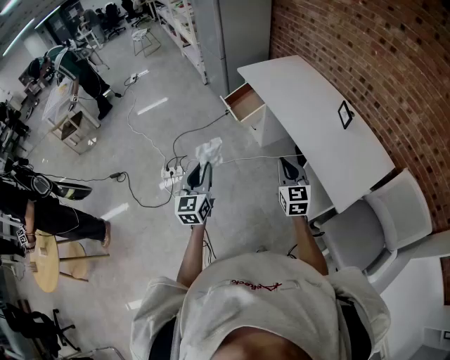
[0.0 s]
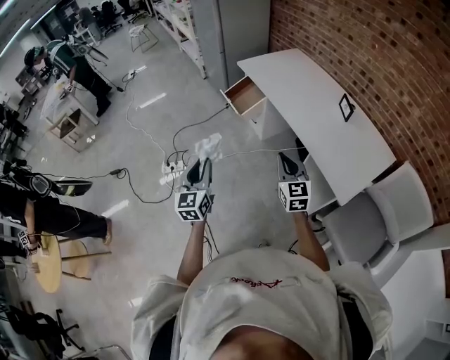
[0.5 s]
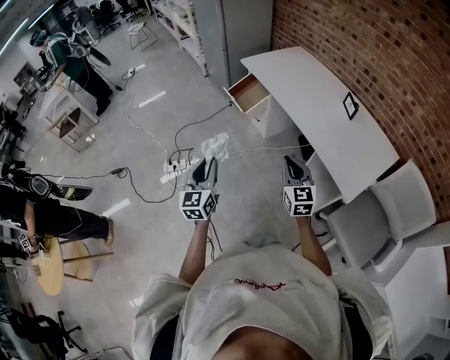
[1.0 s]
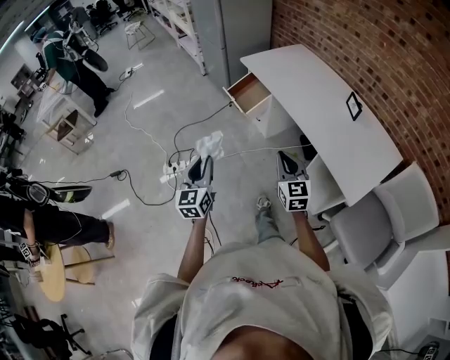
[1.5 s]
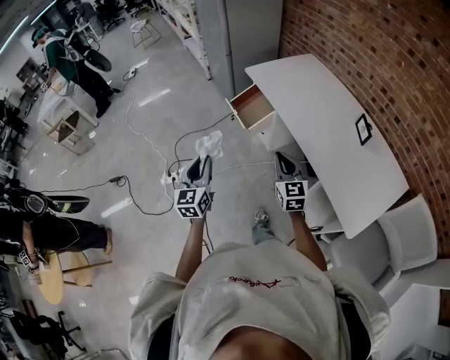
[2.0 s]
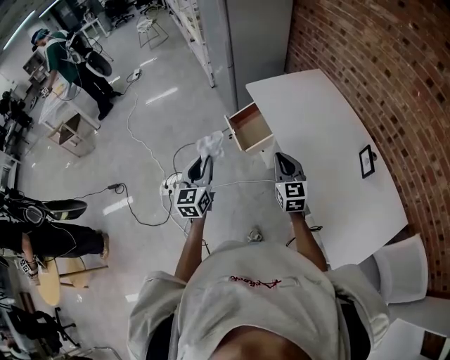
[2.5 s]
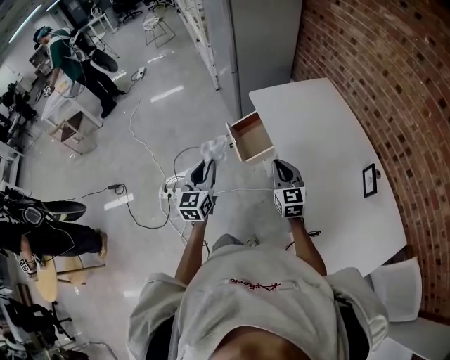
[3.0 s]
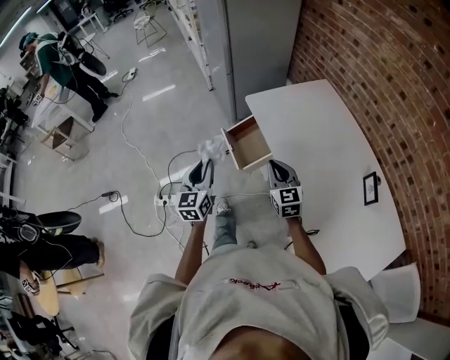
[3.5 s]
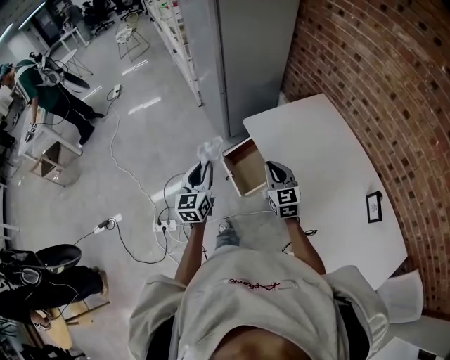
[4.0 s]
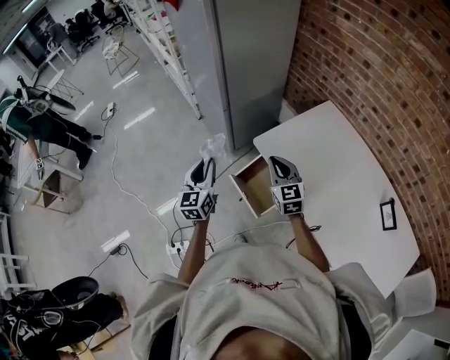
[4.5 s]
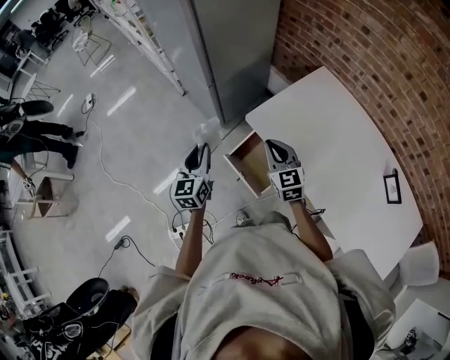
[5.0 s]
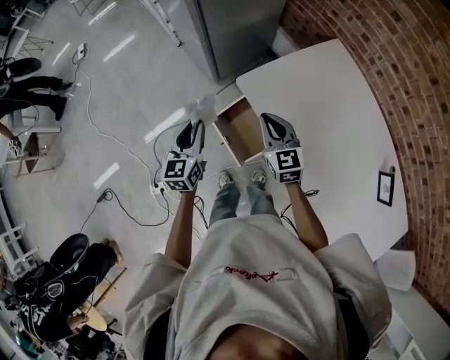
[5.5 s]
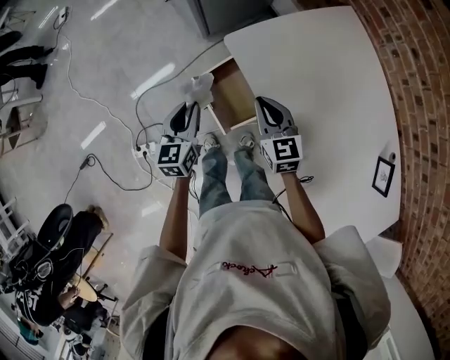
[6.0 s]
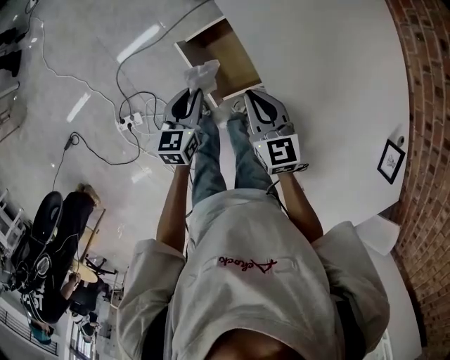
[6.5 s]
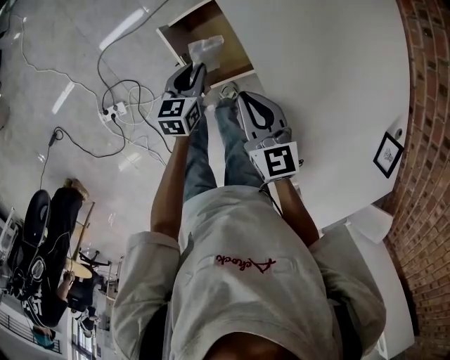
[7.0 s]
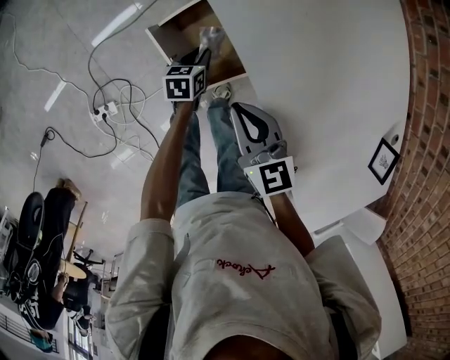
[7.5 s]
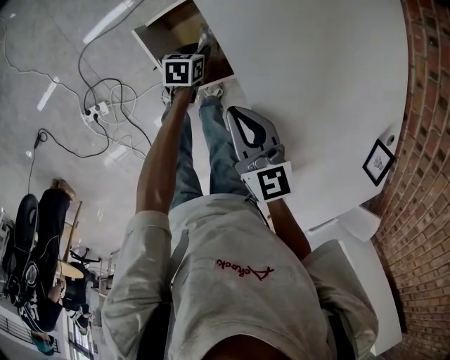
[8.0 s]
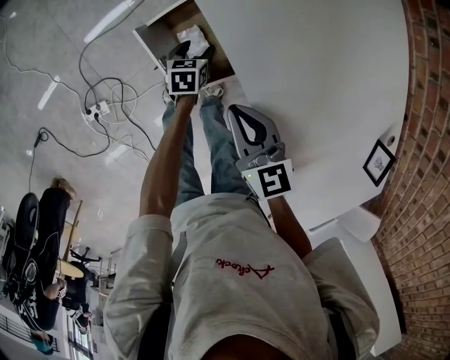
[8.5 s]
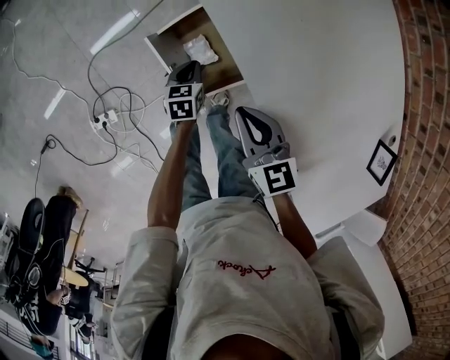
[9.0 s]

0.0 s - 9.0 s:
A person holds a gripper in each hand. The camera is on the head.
0.0 s - 2.0 s: The grippers both shift forward by approximately 20 cm.
2.0 s - 4.5 s: The two grippers travel together, forward, approximately 60 cm.
4.5 s - 7.0 s: The left gripper is displaced downward and to the right by approximately 40 cm, and tilts its fingers approximately 30 degrees downward. The right gripper heads downward, covering about 20 cm, and rotates about 30 degrees.
7.0 s - 9.0 s: The left gripper goes roughly 10 cm downward, and opens, then closes once more.

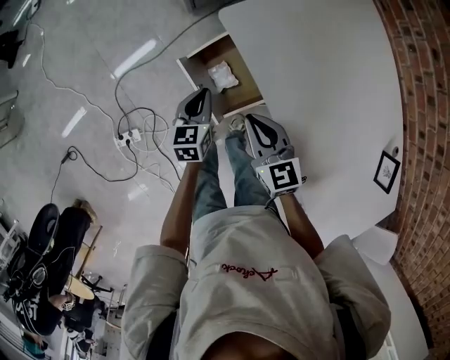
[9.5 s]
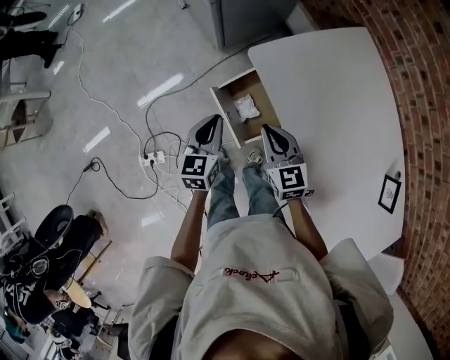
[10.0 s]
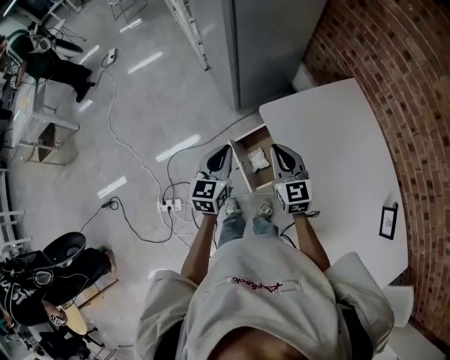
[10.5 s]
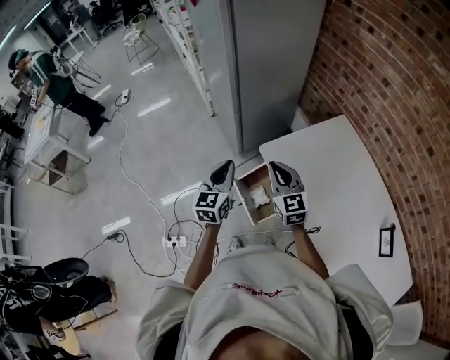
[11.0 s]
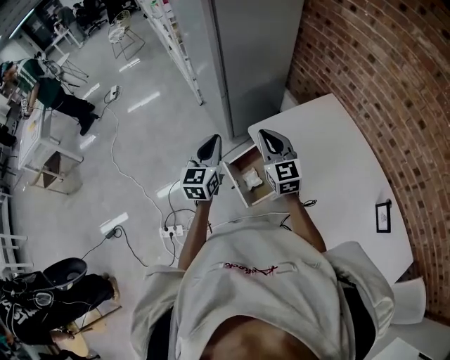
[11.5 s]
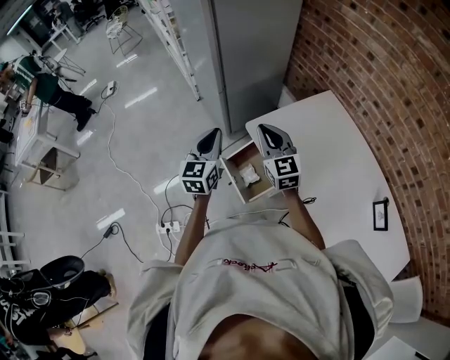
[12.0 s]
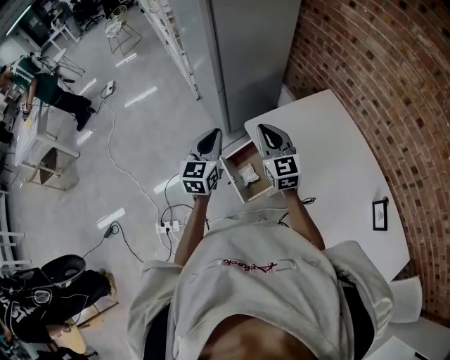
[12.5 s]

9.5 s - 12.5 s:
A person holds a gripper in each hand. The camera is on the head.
9.5 s - 11.0 s: The two grippers go approximately 25 cm upward. The right gripper changes its angle by about 20 degrees; the left gripper changes its angle by some 30 degrees.
11.0 s - 12.5 s: The grippers make only small movements.

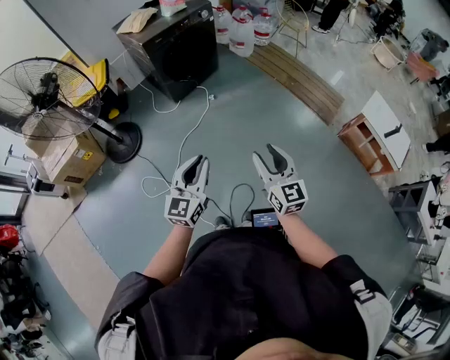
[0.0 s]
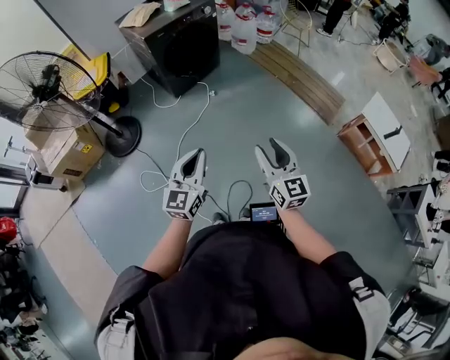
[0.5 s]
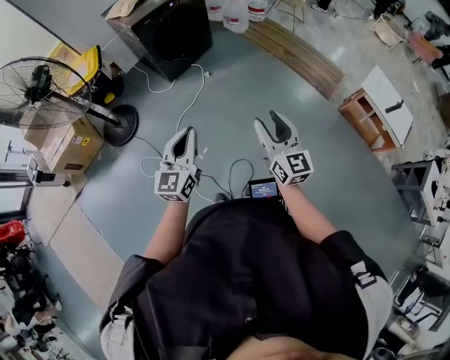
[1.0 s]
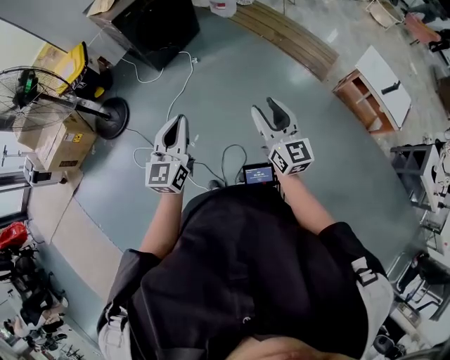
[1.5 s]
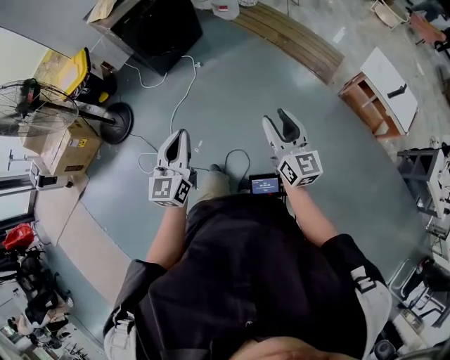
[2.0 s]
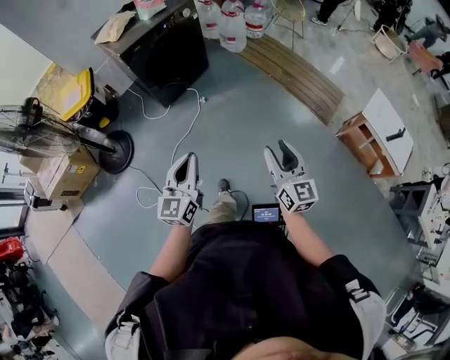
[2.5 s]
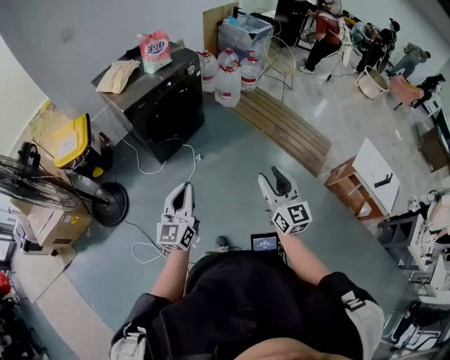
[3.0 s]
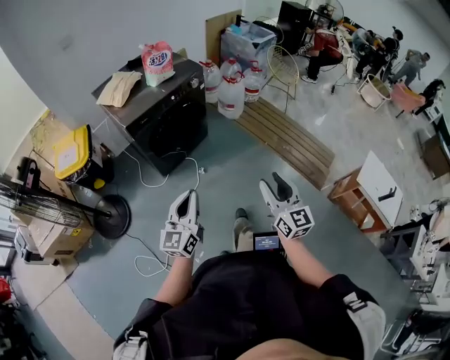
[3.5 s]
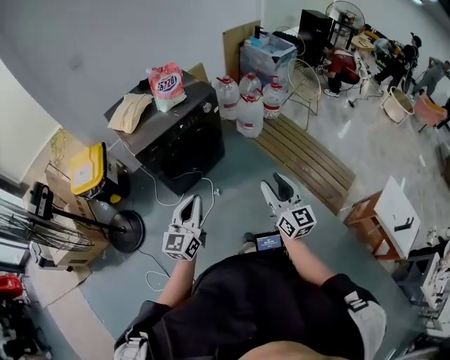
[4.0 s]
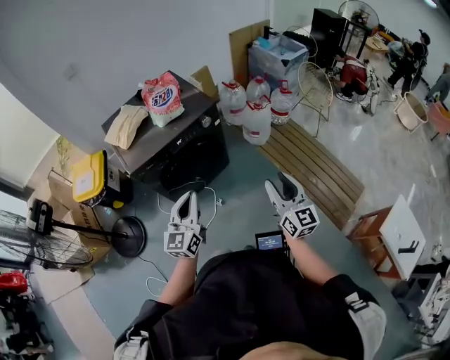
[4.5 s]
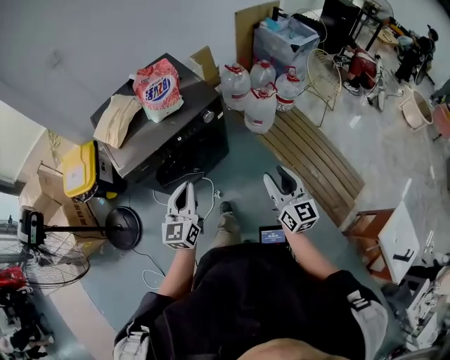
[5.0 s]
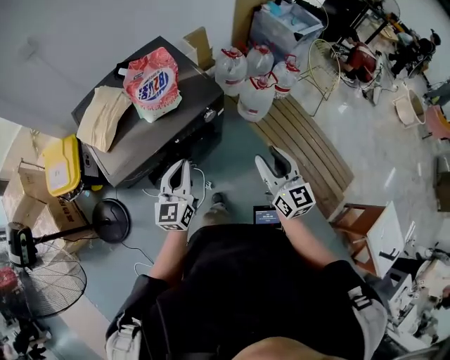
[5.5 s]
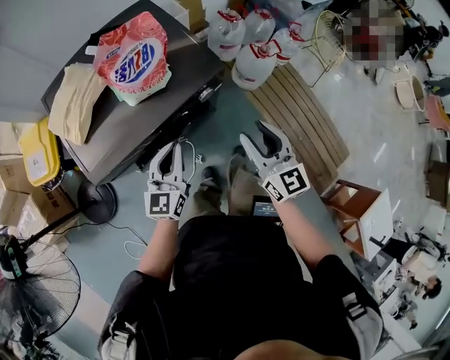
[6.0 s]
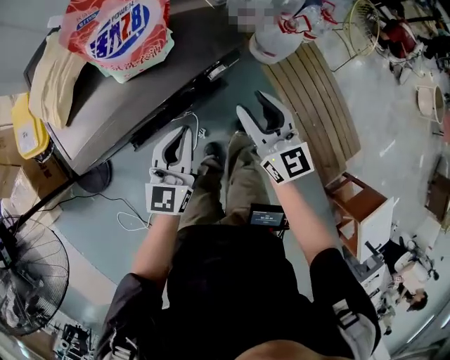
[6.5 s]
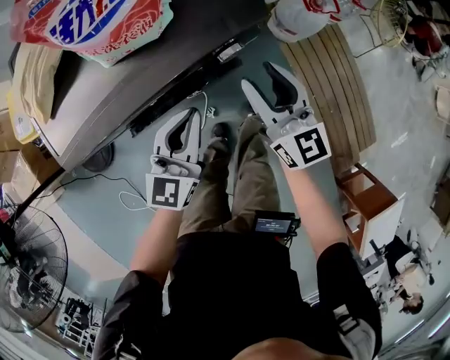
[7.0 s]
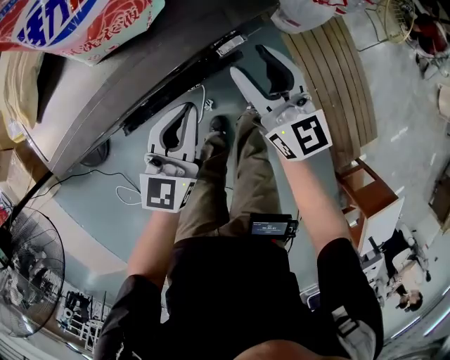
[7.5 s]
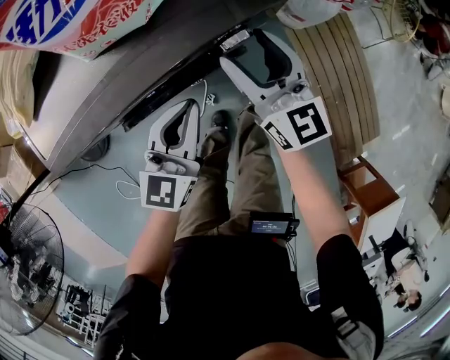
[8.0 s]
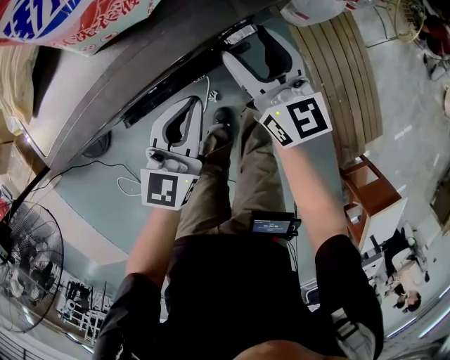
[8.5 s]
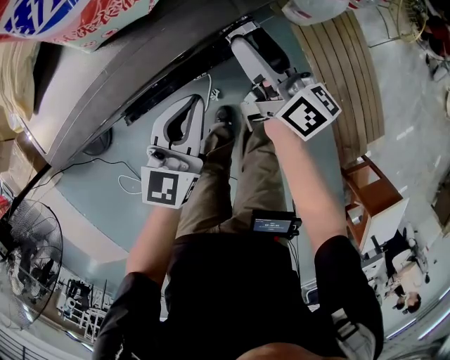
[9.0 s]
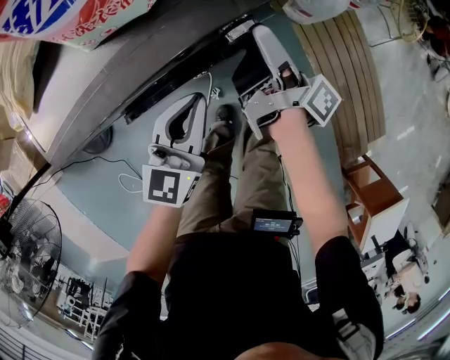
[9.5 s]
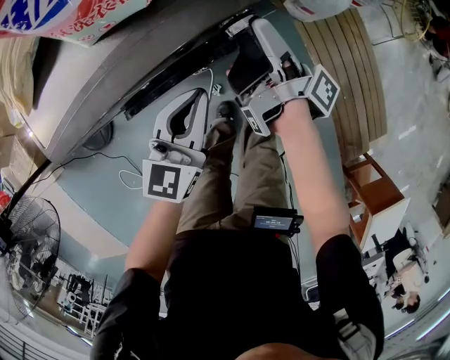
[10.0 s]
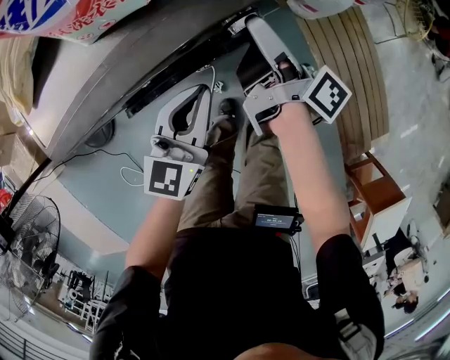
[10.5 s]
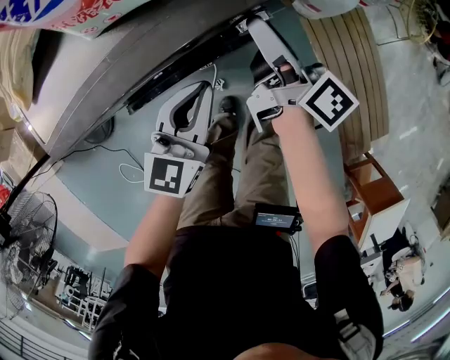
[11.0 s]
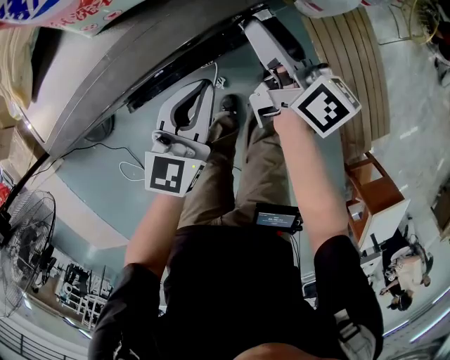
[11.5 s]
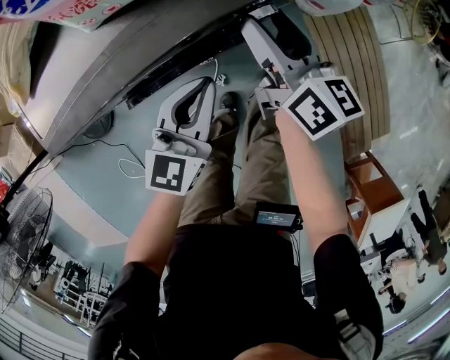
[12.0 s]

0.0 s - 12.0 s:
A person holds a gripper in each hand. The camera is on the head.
0.0 s - 2.0 s: The right gripper goes approximately 15 cm to the right, while the left gripper is displaced to the right by about 5 cm.
2.0 s - 4.0 s: The two grippers travel together, forward, some 50 cm.
4.0 s - 6.0 s: The two grippers travel together, forward, about 40 cm.
6.0 s - 8.0 s: The right gripper moves downward and forward, about 25 cm, while the left gripper travels downward by about 15 cm.
8.0 s - 10.0 s: The right gripper twists some 100 degrees clockwise, seen from behind.
10.0 s - 12.0 s: The right gripper rolls counterclockwise, seen from behind, by some 70 degrees.

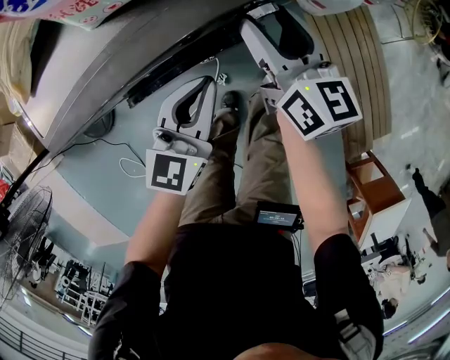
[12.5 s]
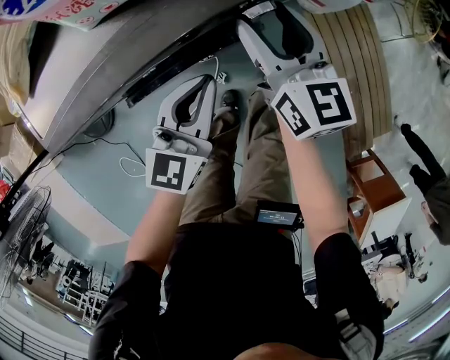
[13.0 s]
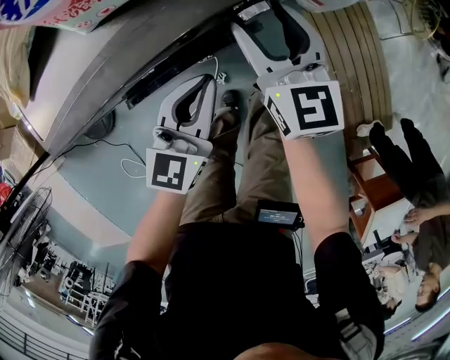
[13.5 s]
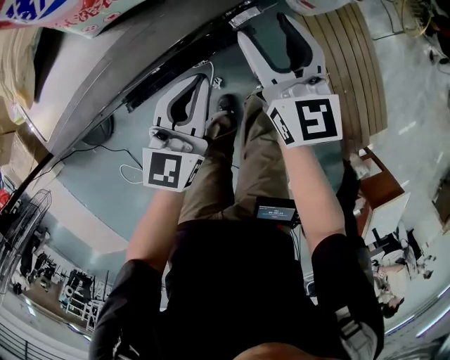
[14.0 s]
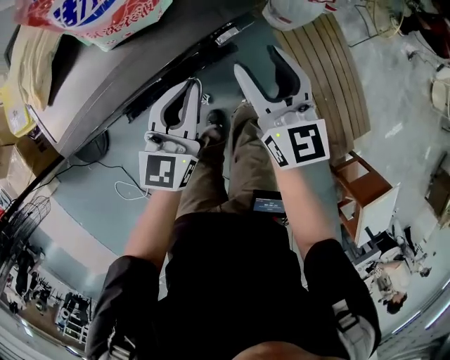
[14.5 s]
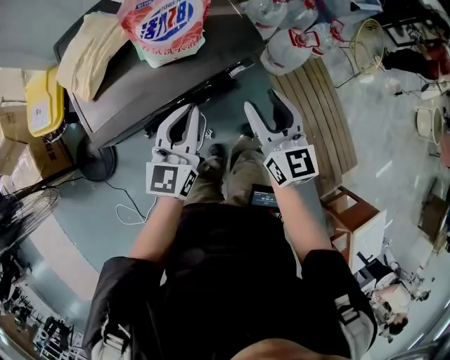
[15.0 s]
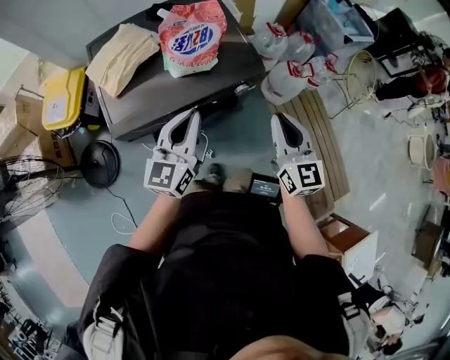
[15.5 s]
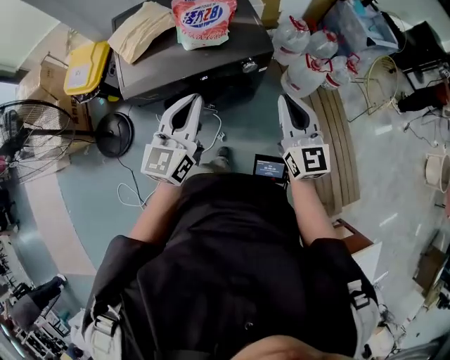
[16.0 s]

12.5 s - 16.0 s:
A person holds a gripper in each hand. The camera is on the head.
12.5 s - 14.5 s: The right gripper heads upward and backward, covering about 10 cm. Meanwhile the left gripper moves upward, approximately 10 cm.
14.5 s - 16.0 s: The two grippers go some 20 cm upward and backward. The right gripper closes.
